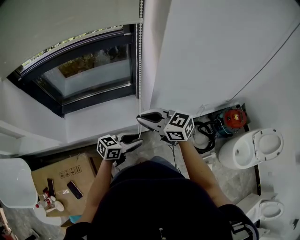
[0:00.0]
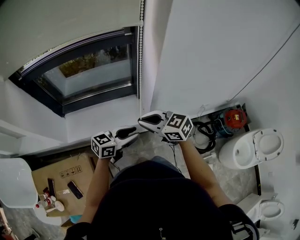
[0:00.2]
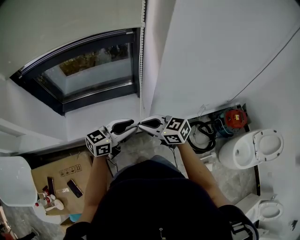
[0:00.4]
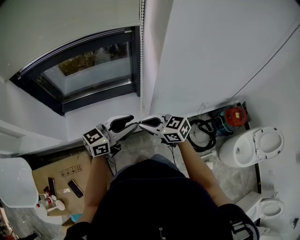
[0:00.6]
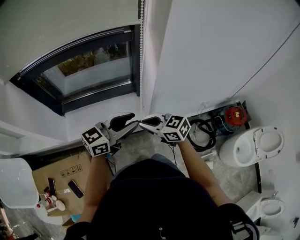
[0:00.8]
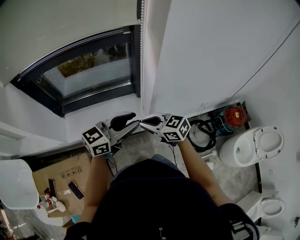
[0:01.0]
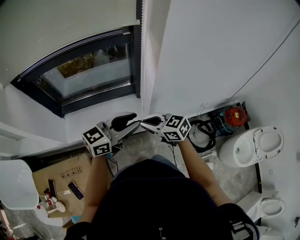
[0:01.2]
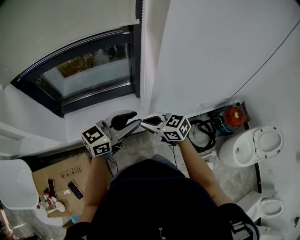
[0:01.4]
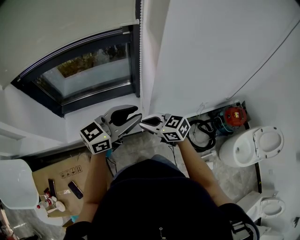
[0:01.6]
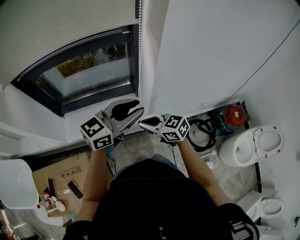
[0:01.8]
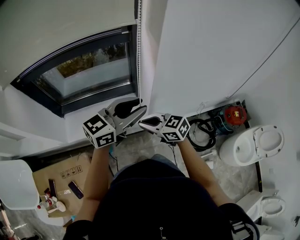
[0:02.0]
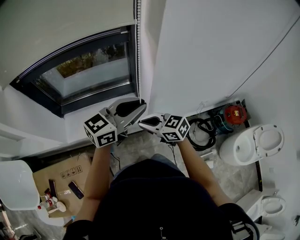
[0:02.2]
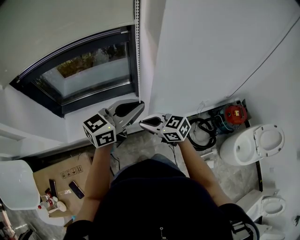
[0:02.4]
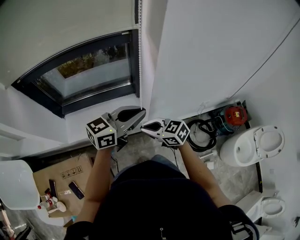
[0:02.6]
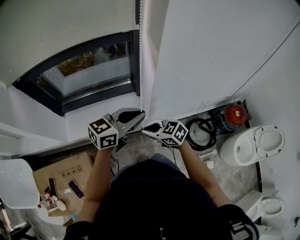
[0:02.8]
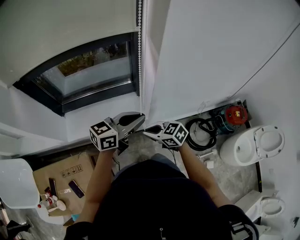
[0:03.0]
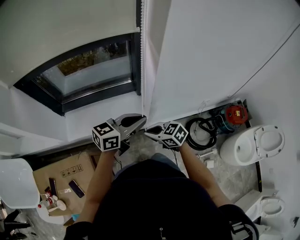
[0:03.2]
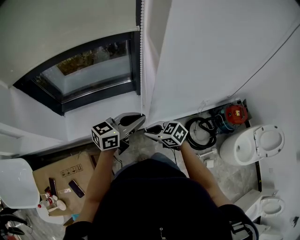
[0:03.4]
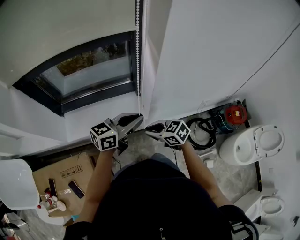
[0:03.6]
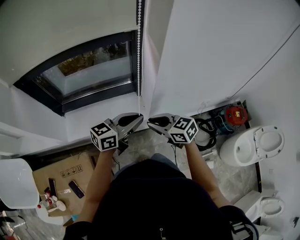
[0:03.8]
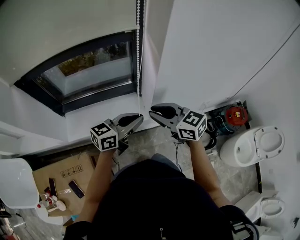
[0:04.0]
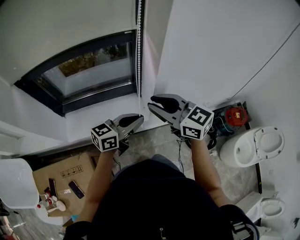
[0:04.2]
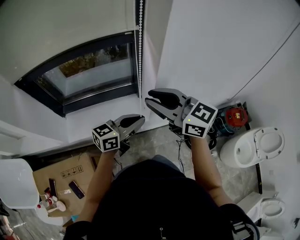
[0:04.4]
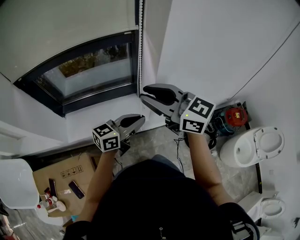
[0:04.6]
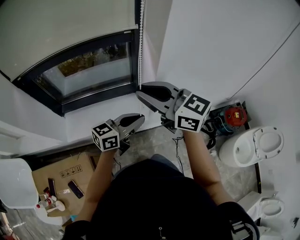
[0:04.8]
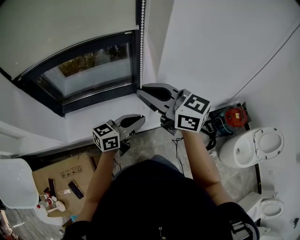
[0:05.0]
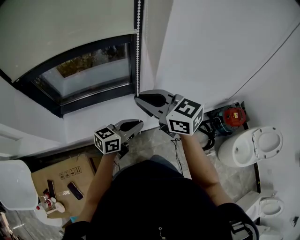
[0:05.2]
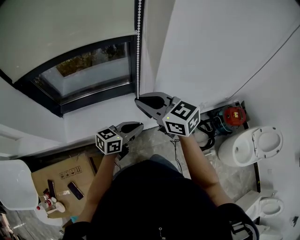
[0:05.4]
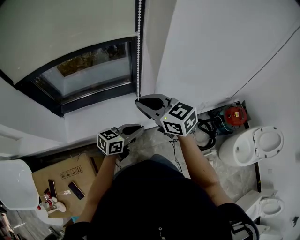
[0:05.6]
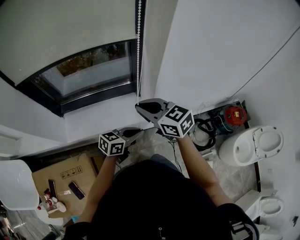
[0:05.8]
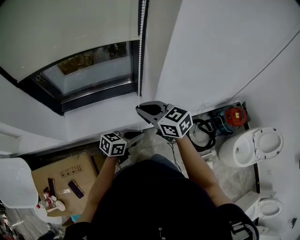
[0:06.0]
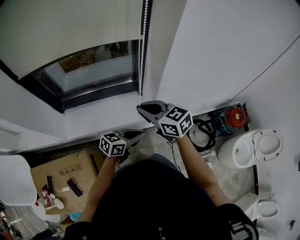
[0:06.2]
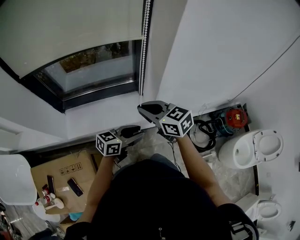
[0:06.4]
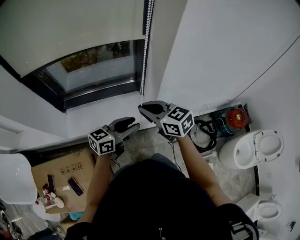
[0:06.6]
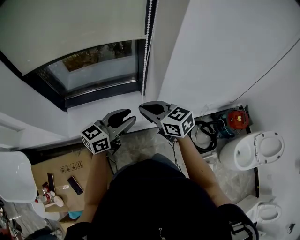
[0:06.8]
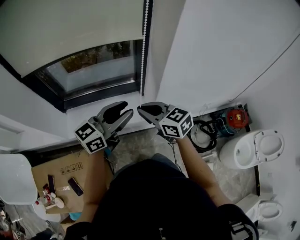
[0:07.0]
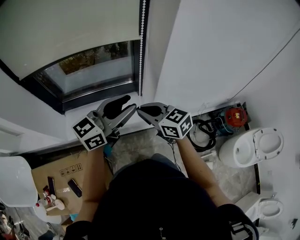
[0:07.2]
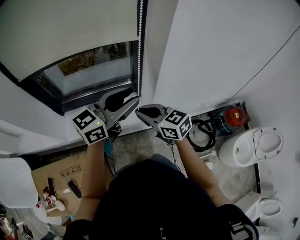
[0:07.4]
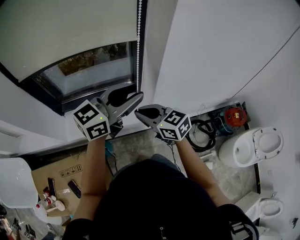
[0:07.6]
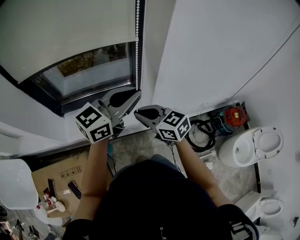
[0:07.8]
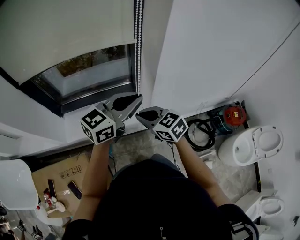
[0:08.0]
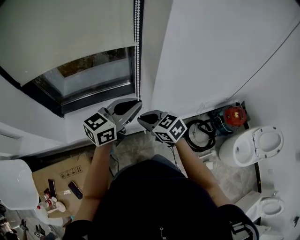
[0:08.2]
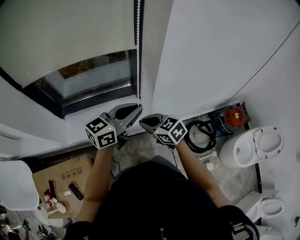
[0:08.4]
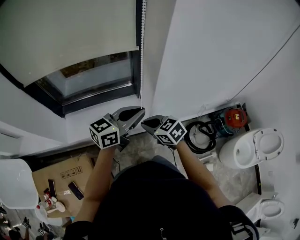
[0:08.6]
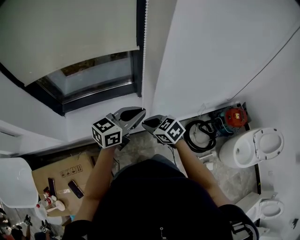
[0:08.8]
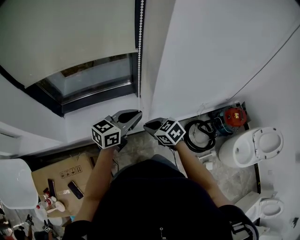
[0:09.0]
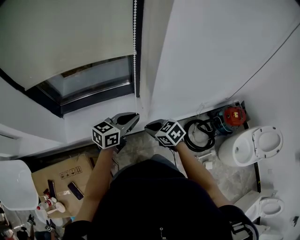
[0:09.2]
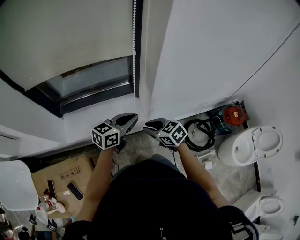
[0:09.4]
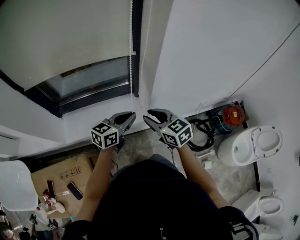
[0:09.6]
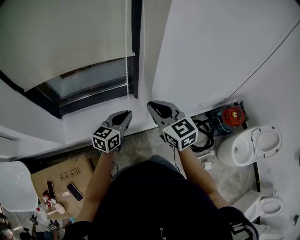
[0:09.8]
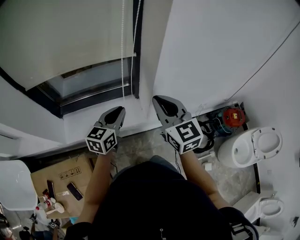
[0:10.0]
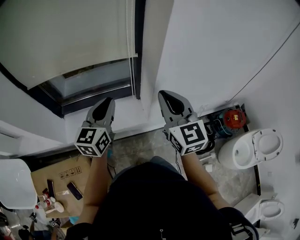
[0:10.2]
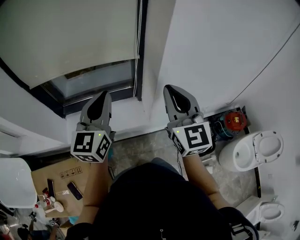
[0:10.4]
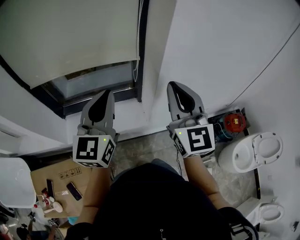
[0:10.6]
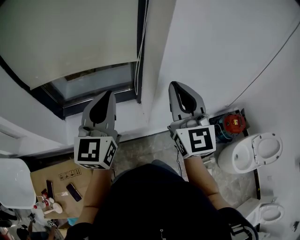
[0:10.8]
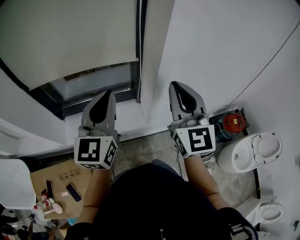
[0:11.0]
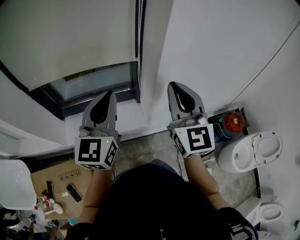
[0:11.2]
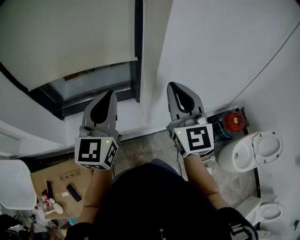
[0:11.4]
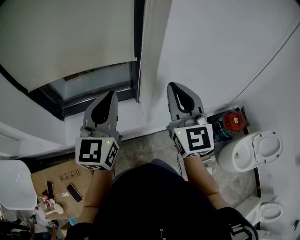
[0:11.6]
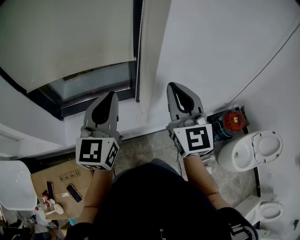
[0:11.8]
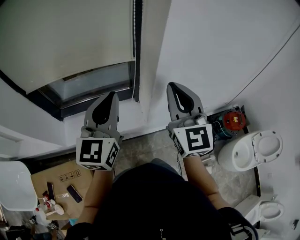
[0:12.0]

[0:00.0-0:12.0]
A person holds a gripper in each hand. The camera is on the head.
0:00.0 to 0:01.6: The left gripper heads upward, covering about 20 cm, and swivels roughly 30 degrees. Meanwhile the right gripper heads downward, covering roughly 5 cm.
0:01.6 to 0:03.0: The grippers both shift downward by about 5 cm. The left gripper closes up.
0:03.0 to 0:04.4: The right gripper moves upward, approximately 25 cm, and turns by approximately 30 degrees.
0:04.4 to 0:06.0: The left gripper goes roughly 15 cm downward. Meanwhile the right gripper heads downward and to the left, covering approximately 15 cm.
0:06.0 to 0:07.6: The left gripper shifts about 25 cm upward, swivels about 30 degrees, and opens its fingers.
0:07.6 to 0:09.0: Both grippers travel together downward, roughly 15 cm. The left gripper closes, while the right gripper rotates approximately 20 degrees.
0:09.0 to 0:10.4: The left gripper is displaced upward and to the left by roughly 20 cm, and rotates approximately 50 degrees. The right gripper travels upward by about 30 cm, and tips its fingers upward by some 40 degrees.
0:10.4 to 0:12.0: The grippers stay close to where they were, moving slightly.

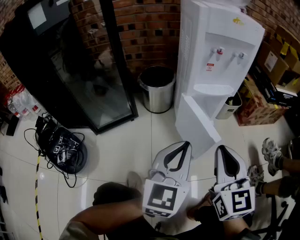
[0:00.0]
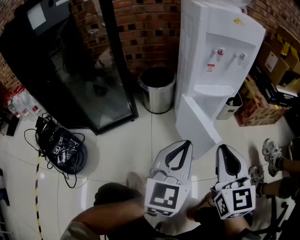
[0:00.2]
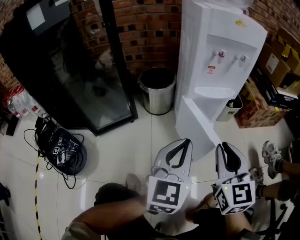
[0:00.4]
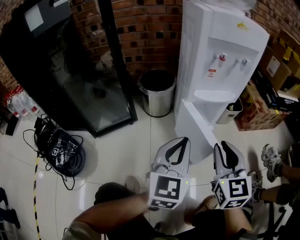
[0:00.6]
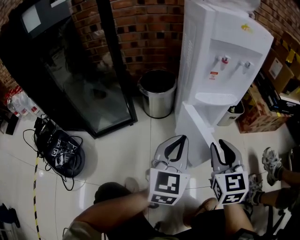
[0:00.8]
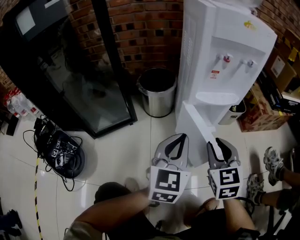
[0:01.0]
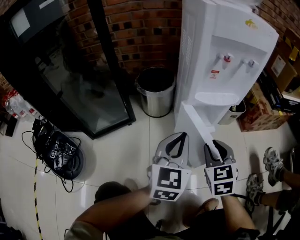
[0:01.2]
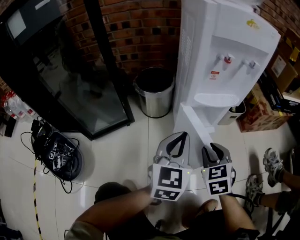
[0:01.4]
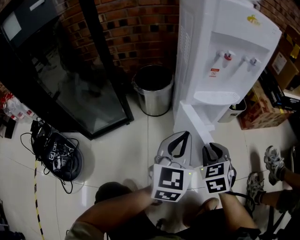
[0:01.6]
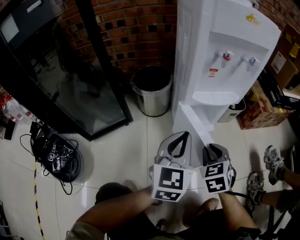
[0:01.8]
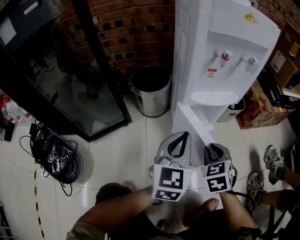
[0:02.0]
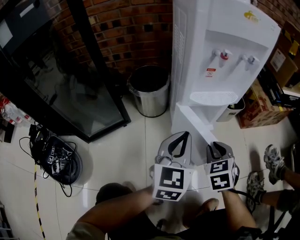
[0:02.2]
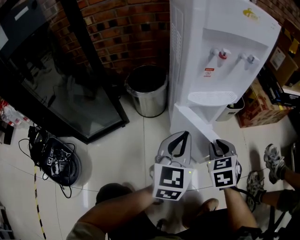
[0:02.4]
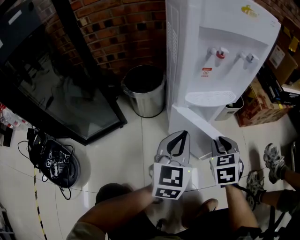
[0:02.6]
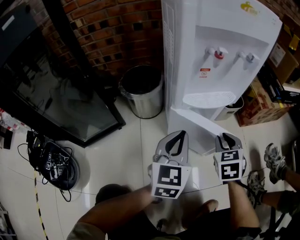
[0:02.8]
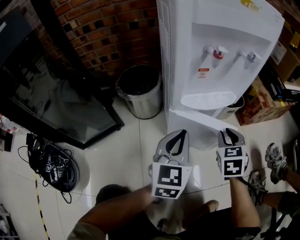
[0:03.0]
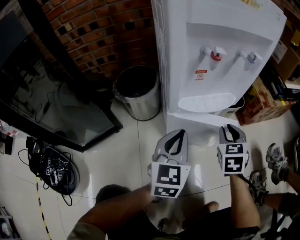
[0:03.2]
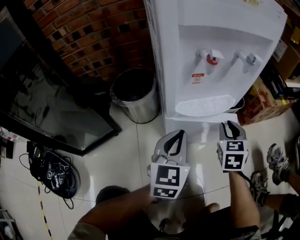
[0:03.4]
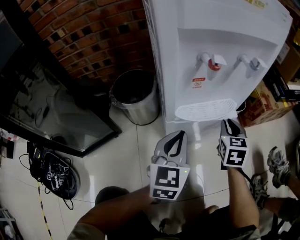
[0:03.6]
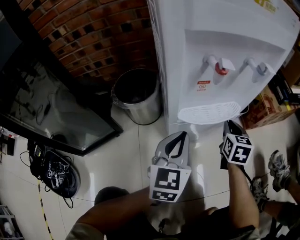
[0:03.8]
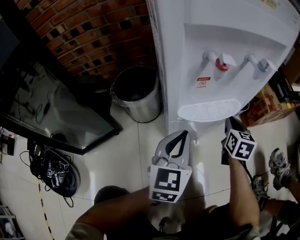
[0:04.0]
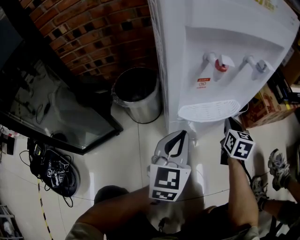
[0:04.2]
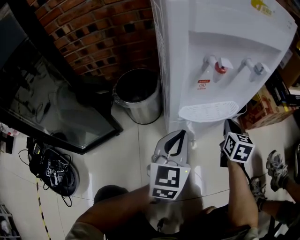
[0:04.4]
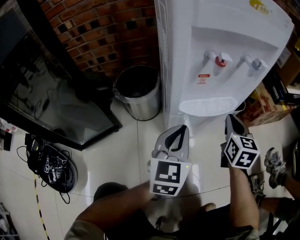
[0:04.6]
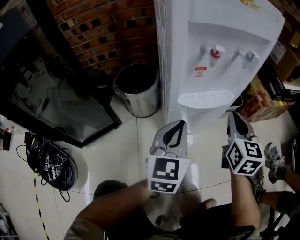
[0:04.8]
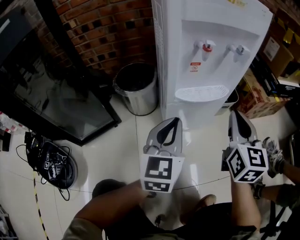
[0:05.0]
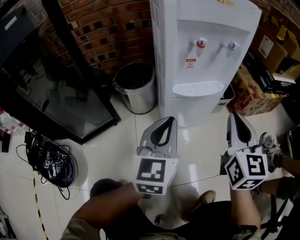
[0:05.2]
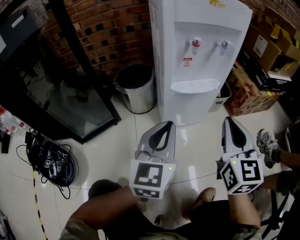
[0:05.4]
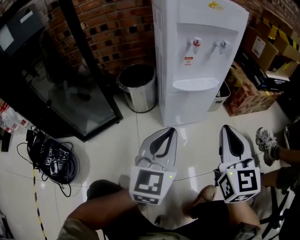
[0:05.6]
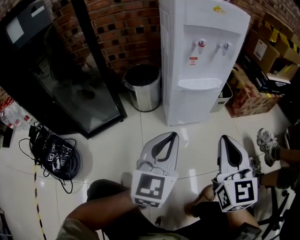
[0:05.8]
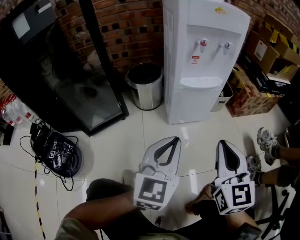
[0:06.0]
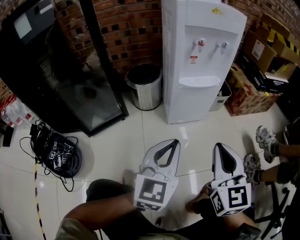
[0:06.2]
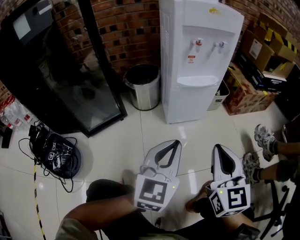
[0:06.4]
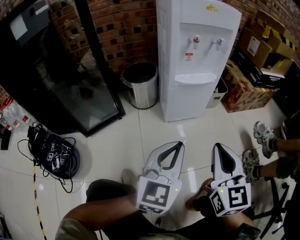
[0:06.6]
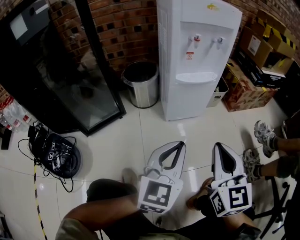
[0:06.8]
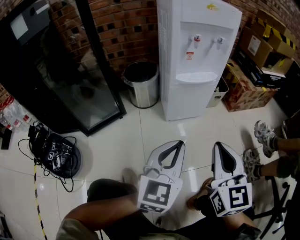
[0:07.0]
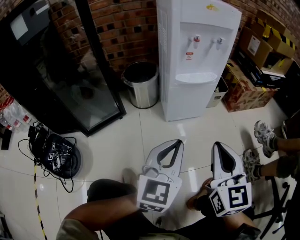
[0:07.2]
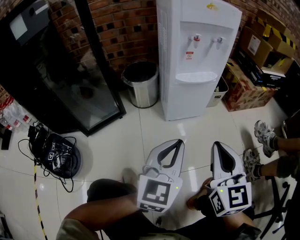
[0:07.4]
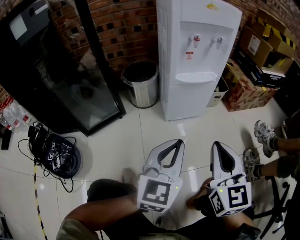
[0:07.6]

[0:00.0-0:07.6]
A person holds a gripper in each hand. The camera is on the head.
0:00.0 to 0:01.6: The left gripper goes roughly 15 cm forward and downward. The right gripper travels downward and forward by about 20 cm, and points its fingers roughly 30 degrees further downward.
0:01.6 to 0:03.0: The left gripper is displaced forward by about 5 cm; the right gripper moves forward and to the right, approximately 15 cm.
0:03.0 to 0:04.6: The right gripper travels forward by some 5 cm, and swivels roughly 30 degrees.
0:04.6 to 0:06.0: The left gripper moves backward, some 25 cm; the right gripper moves backward and upward, roughly 35 cm.
0:06.0 to 0:07.6: The grippers move only a little.

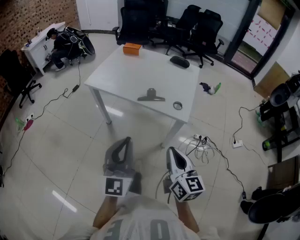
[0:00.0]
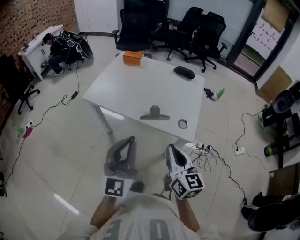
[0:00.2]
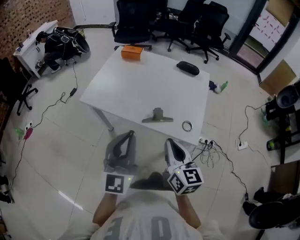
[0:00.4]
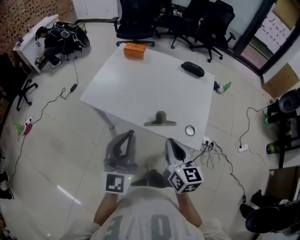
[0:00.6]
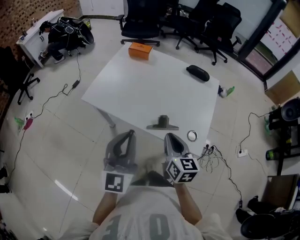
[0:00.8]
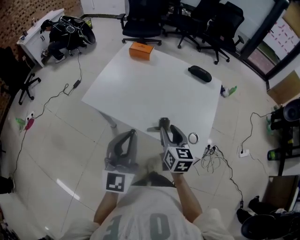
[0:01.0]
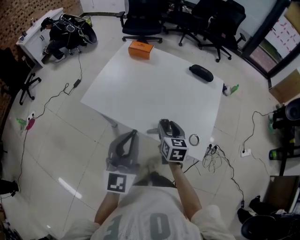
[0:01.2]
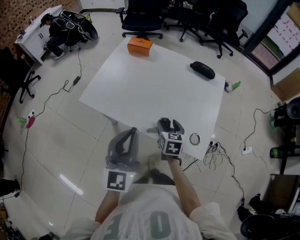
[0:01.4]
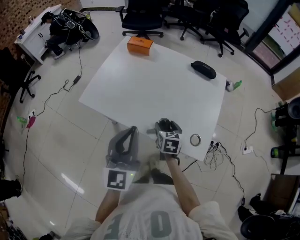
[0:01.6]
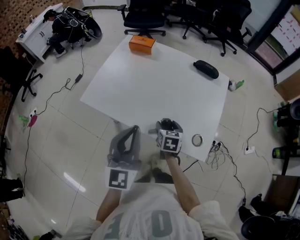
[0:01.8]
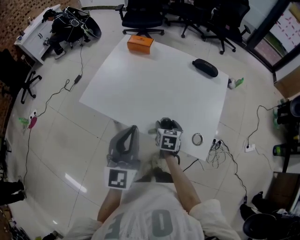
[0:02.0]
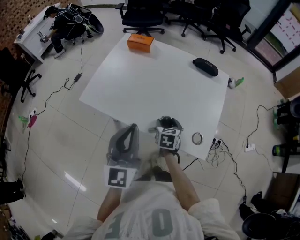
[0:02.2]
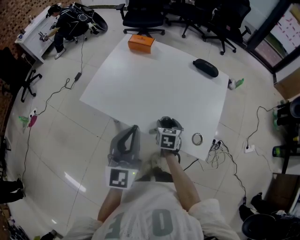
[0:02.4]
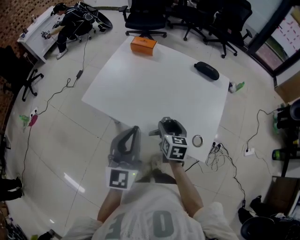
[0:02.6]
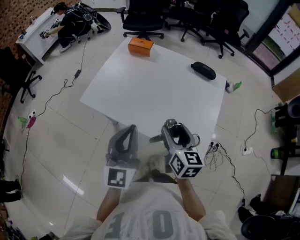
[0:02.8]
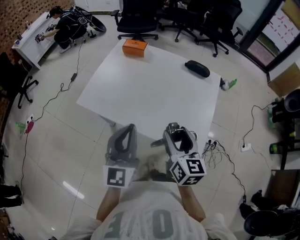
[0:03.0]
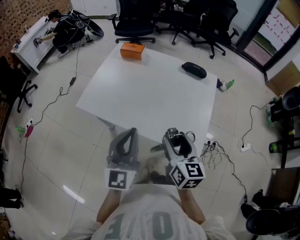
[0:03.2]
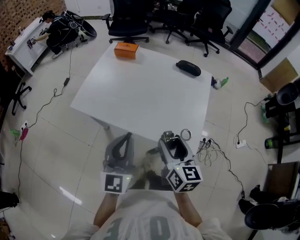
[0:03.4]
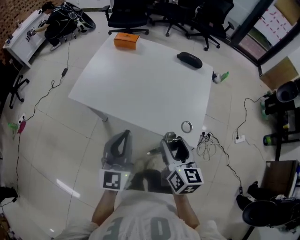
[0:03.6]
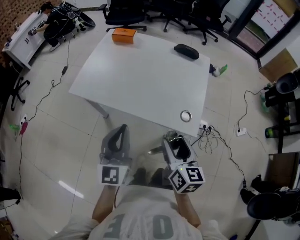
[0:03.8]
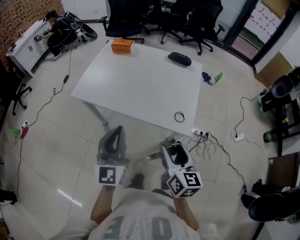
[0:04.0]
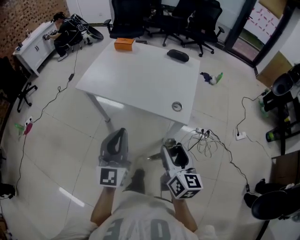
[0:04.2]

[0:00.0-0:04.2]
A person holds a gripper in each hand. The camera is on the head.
0:00.0 to 0:01.4: The left gripper moves forward, about 30 cm. Meanwhile the right gripper moves forward and downward, some 40 cm, tilts its fingers approximately 30 degrees downward, and opens up.
0:01.4 to 0:02.8: The right gripper travels upward by roughly 15 cm, and changes its angle by roughly 20 degrees.
0:02.8 to 0:04.2: The two grippers go about 25 cm backward.
